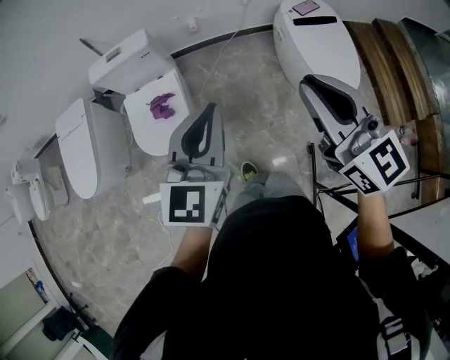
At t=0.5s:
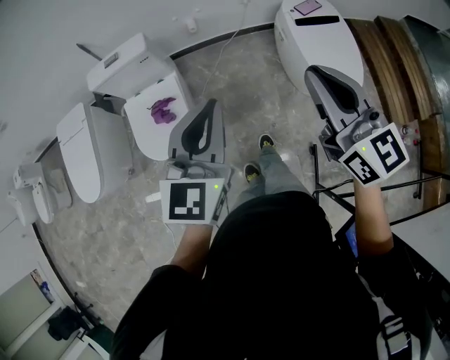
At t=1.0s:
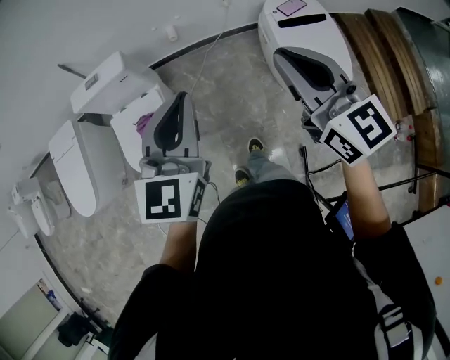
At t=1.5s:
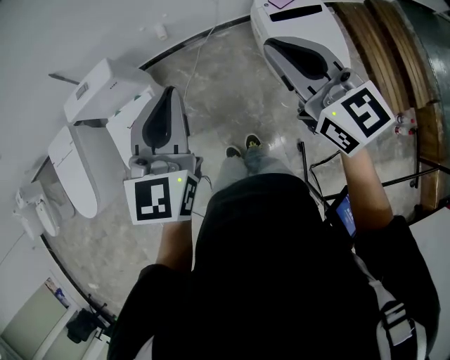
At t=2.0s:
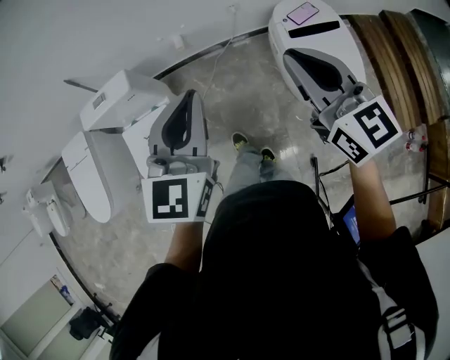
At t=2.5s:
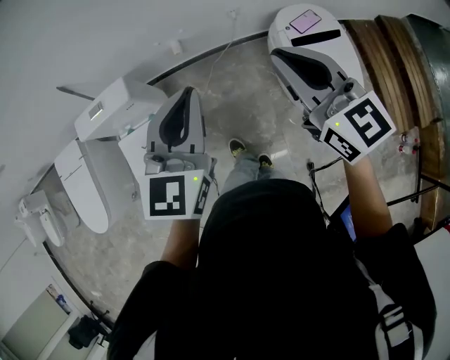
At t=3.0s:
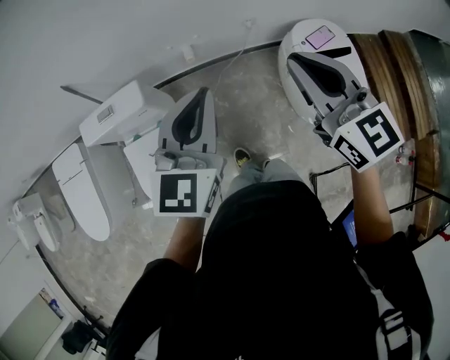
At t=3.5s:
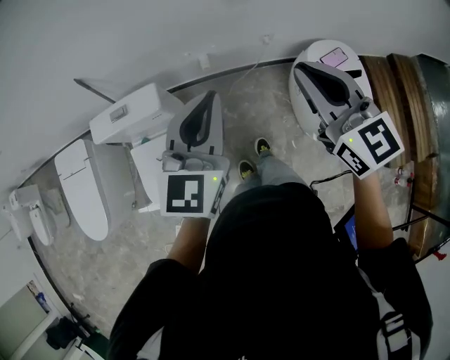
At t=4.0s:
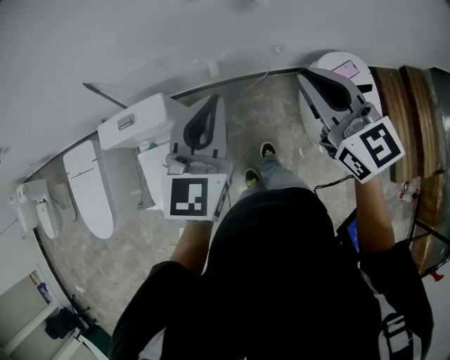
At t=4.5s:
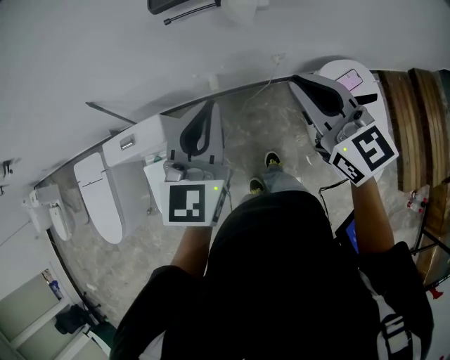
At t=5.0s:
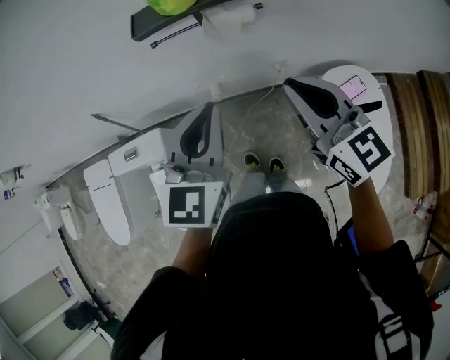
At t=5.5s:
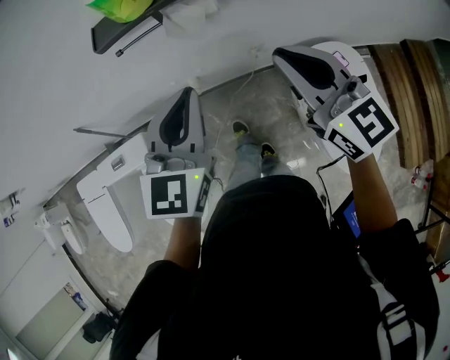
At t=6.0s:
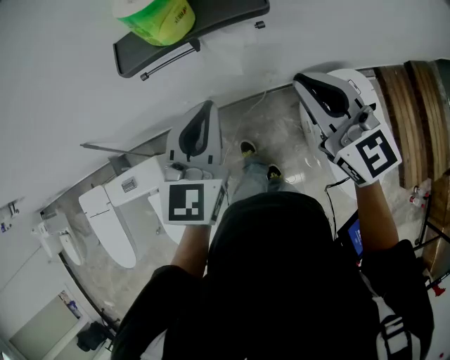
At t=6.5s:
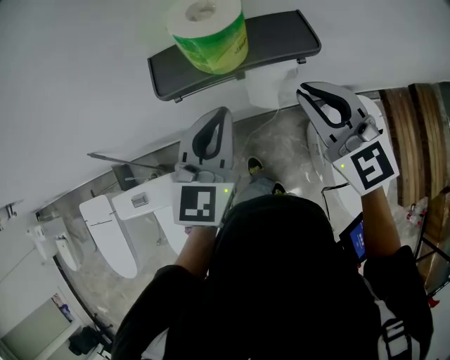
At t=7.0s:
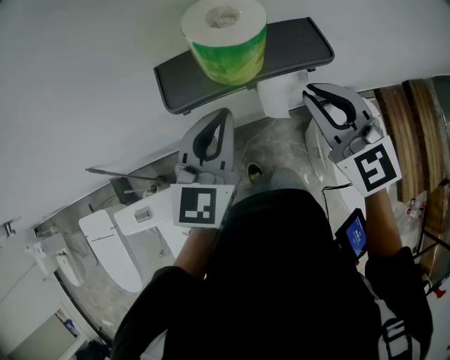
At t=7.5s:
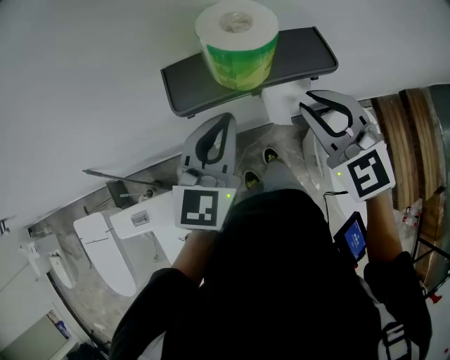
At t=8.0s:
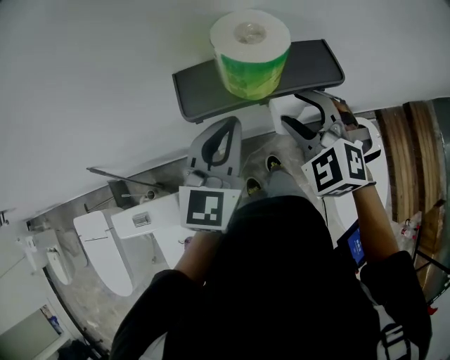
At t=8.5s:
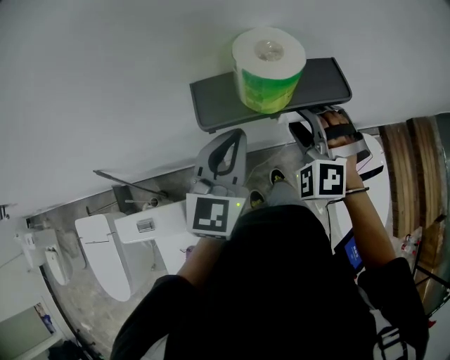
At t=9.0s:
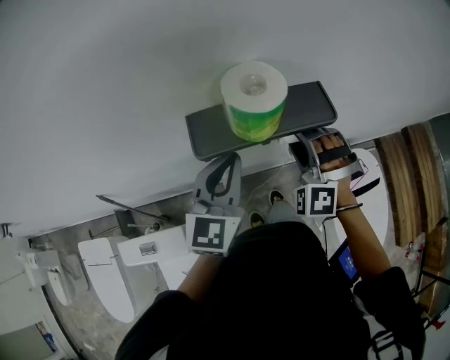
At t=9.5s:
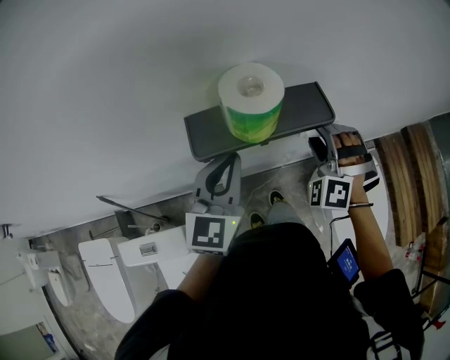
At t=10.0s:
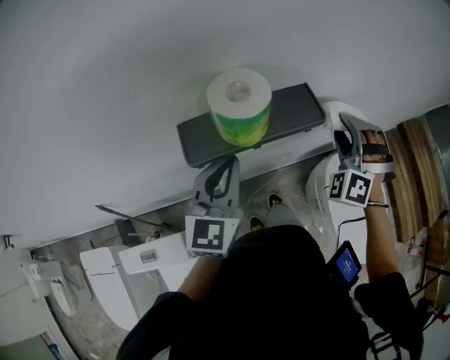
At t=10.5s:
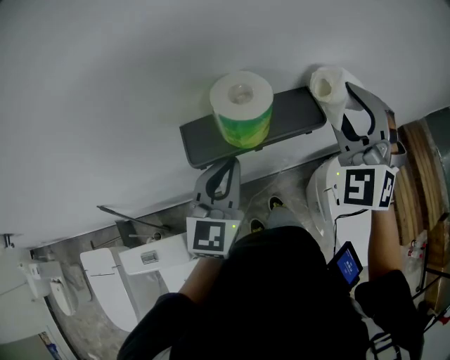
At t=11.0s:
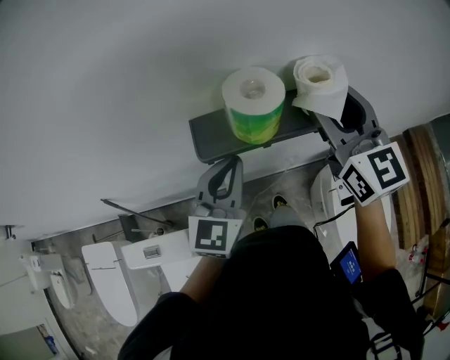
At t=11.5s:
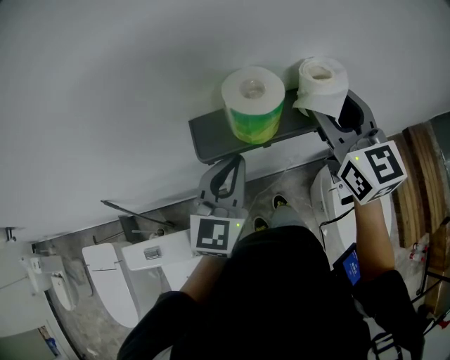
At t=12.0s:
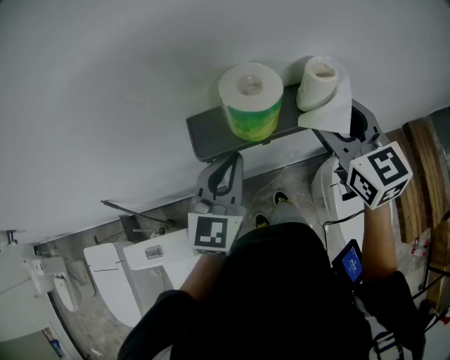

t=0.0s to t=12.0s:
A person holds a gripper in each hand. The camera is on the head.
t=0.0s to t=2.0s: Both grippers move forward and to the right, approximately 30 cm.
t=2.0s to t=4.0s: The grippers both shift forward and to the left by some 25 cm.
t=4.0s to t=6.0s: The grippers both shift forward and to the right by approximately 25 cm.
t=6.0s to t=8.0s: The left gripper heads forward and to the left, covering roughly 10 cm; the right gripper travels forward, to the left and downward by approximately 15 cm, angles its fingers downward, by roughly 30 degrees, and opens its fingers.
t=8.0s to t=10.0s: The right gripper travels to the right and forward by some 15 cm, and rotates roughly 40 degrees.
t=10.0s to t=12.0s: The right gripper moves upward and to the left, roughly 15 cm, and rolls clockwise, seen from behind, by roughly 70 degrees.

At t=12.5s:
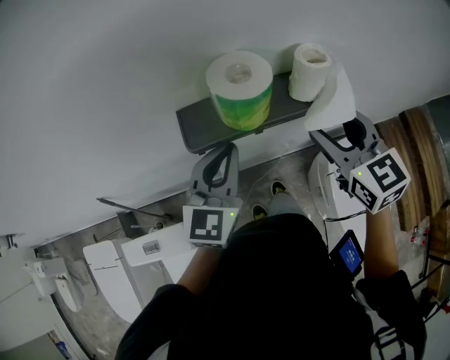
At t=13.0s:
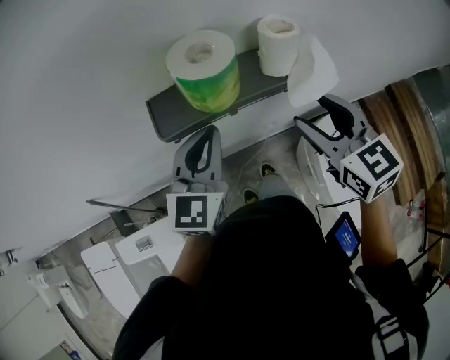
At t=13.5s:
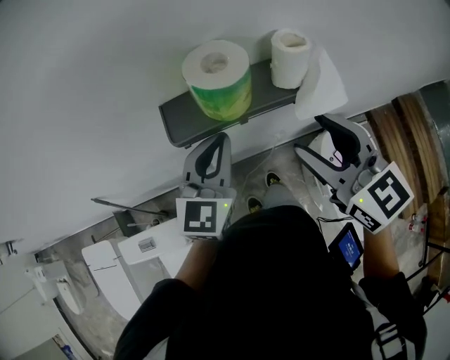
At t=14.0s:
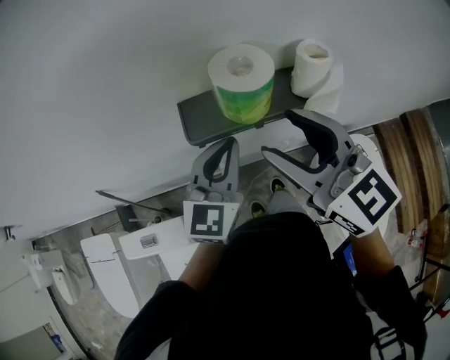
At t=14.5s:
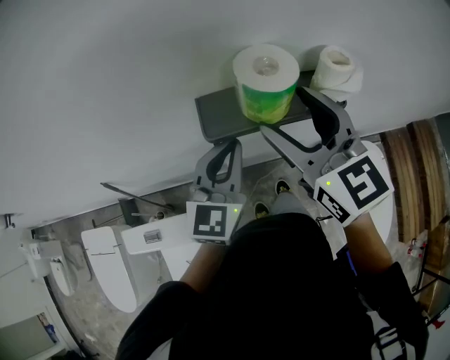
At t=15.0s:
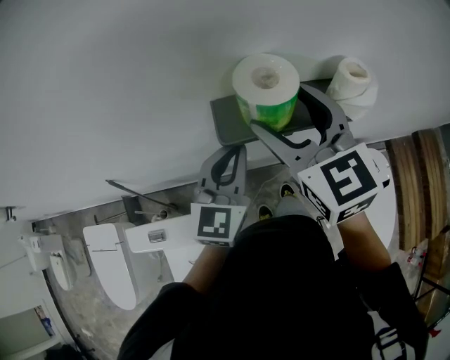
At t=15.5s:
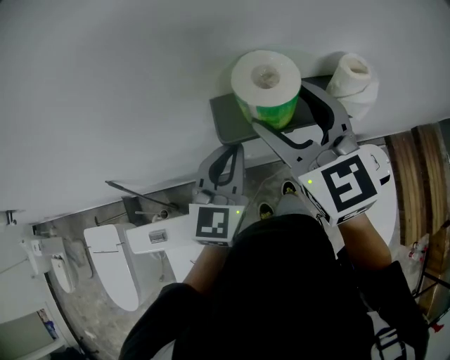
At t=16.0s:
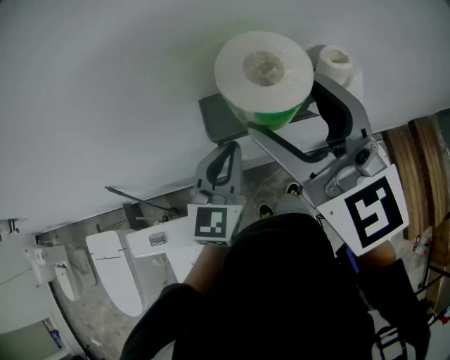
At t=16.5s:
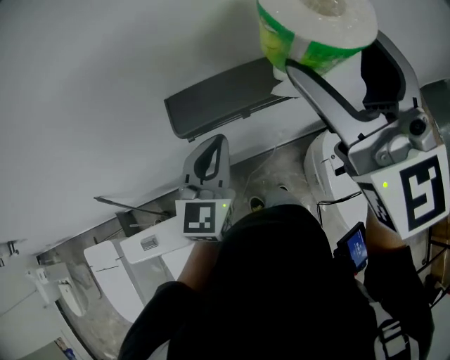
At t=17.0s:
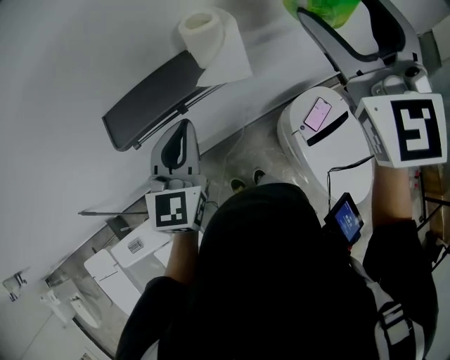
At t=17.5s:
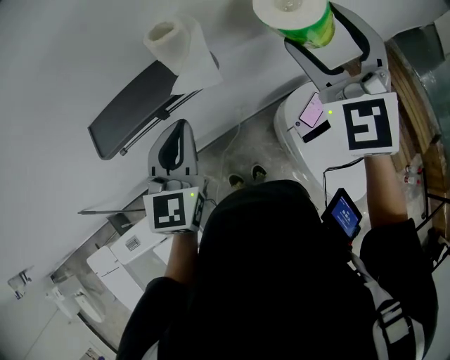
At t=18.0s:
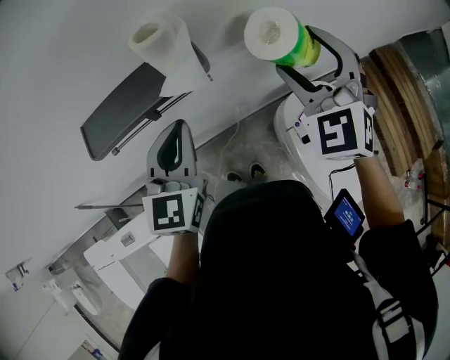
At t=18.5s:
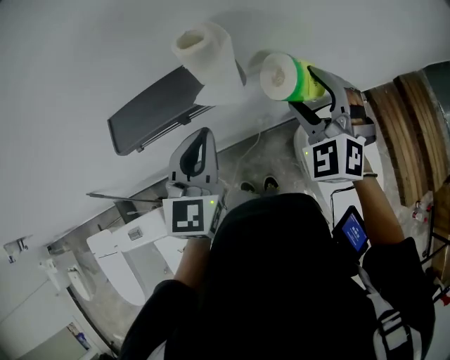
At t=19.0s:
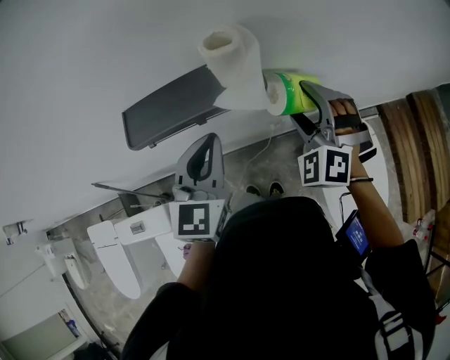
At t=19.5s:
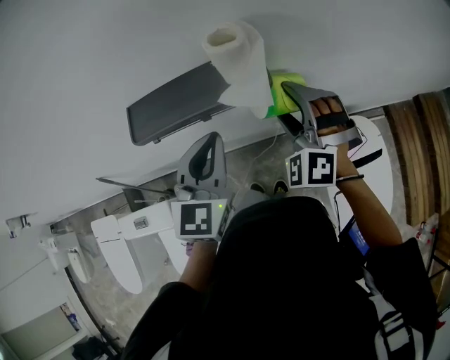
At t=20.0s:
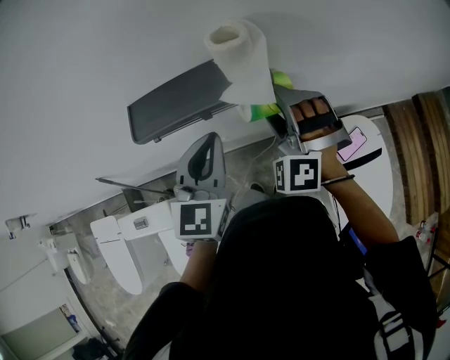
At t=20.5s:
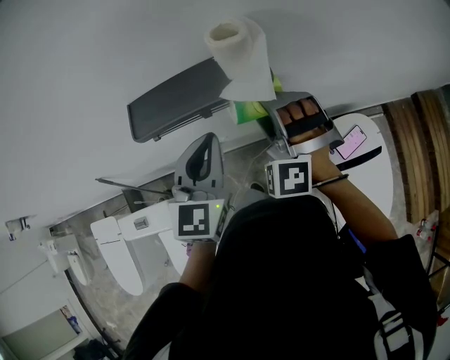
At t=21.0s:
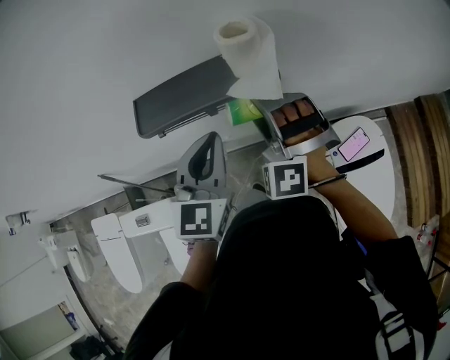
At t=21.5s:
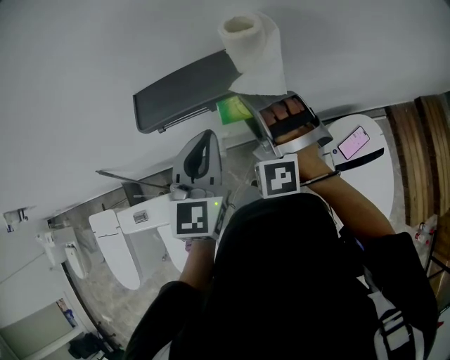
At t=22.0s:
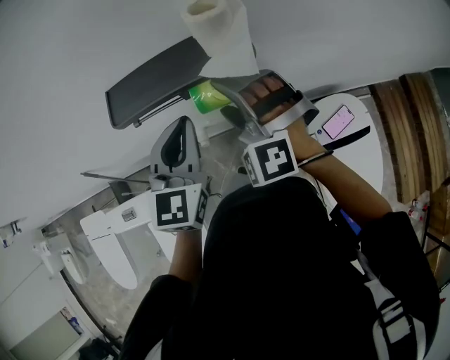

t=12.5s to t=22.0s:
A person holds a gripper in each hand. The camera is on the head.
t=12.5s to t=14.5s: The right gripper shifts some 15 cm to the left and upward.
t=14.5s to t=16.5s: The right gripper travels upward and to the right by approximately 15 cm, and changes its angle by roughly 30 degrees.
t=16.5s to t=18.0s: The right gripper travels downward and to the right by about 25 cm, and turns by about 40 degrees, while the left gripper heads to the right, covering roughly 10 cm.
t=18.0s to t=20.0s: The right gripper is displaced to the left and downward by roughly 20 cm, and swivels about 30 degrees.
t=20.0s to t=22.0s: The right gripper heads to the left, covering some 5 cm.

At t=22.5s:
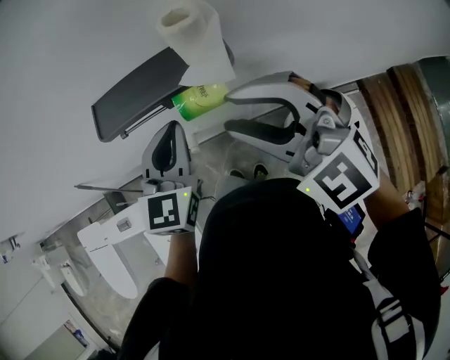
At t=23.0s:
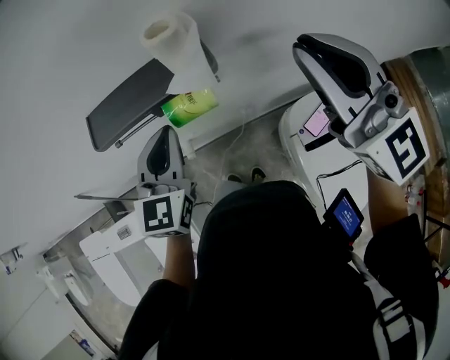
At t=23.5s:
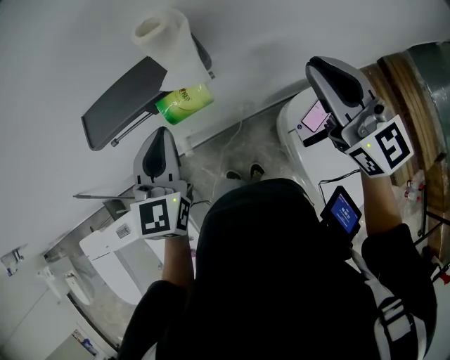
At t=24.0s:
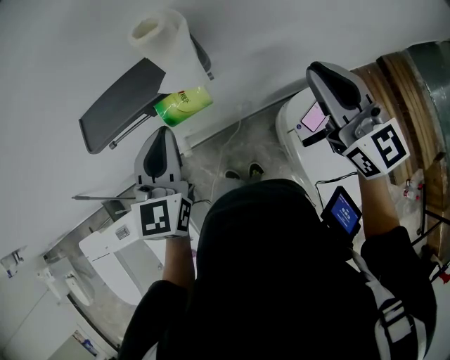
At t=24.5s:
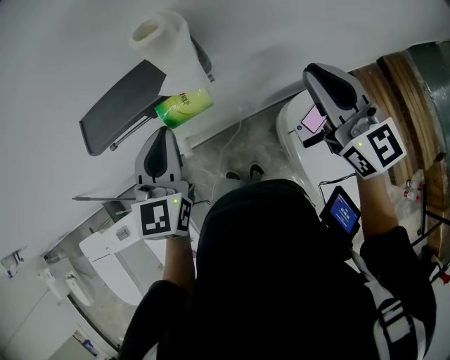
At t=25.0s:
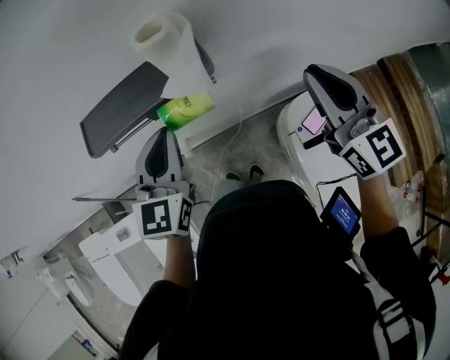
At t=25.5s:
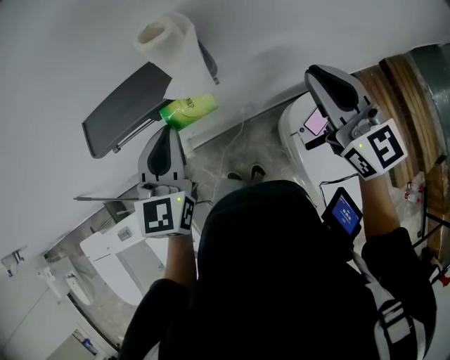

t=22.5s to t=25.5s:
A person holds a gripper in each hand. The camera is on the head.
t=22.5s to t=24.0s: The right gripper goes about 20 cm to the right, changes its angle by some 50 degrees, and closes.
t=24.0s to t=25.5s: The grippers make only small movements.

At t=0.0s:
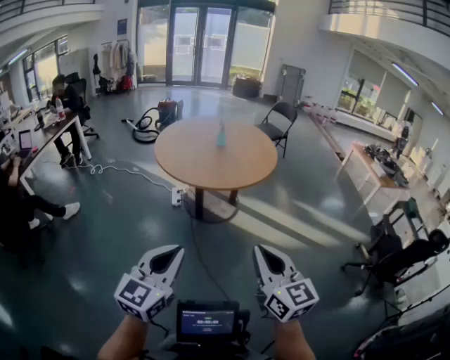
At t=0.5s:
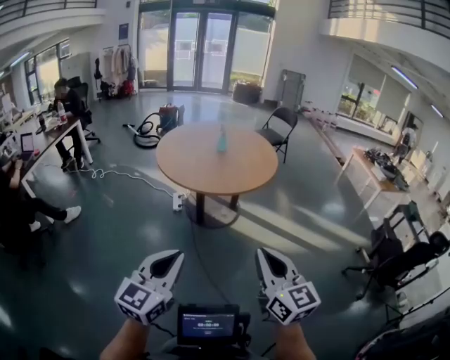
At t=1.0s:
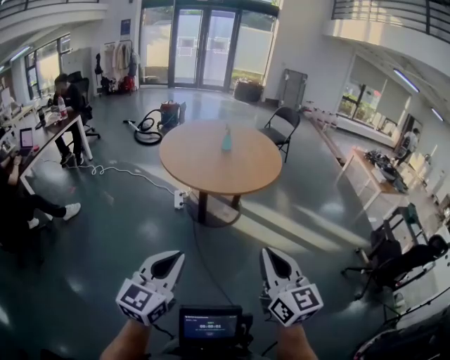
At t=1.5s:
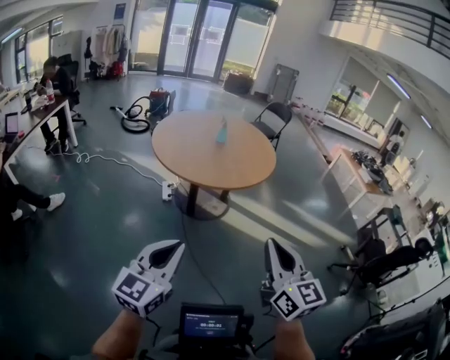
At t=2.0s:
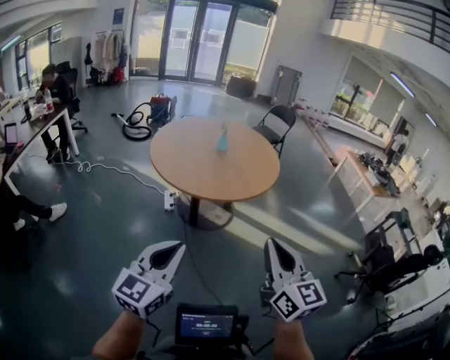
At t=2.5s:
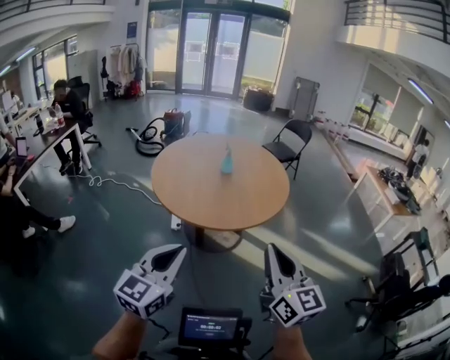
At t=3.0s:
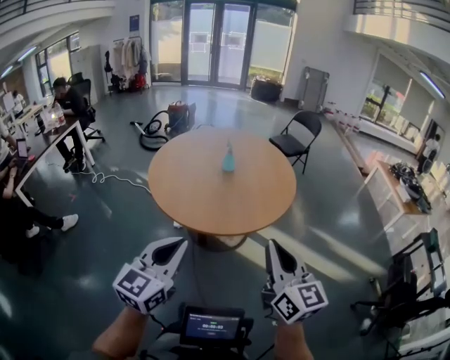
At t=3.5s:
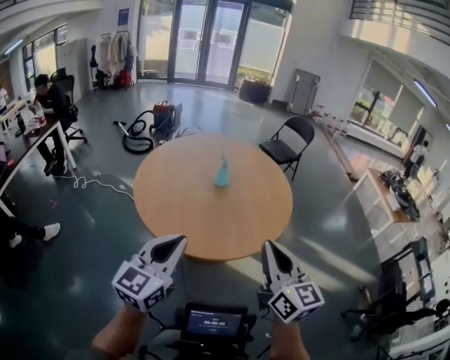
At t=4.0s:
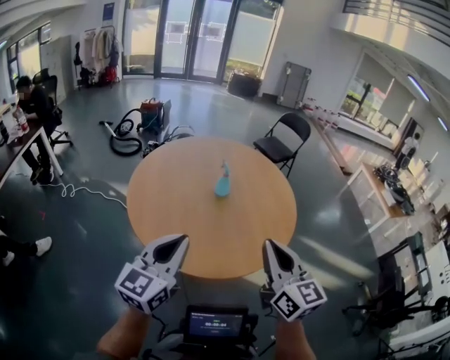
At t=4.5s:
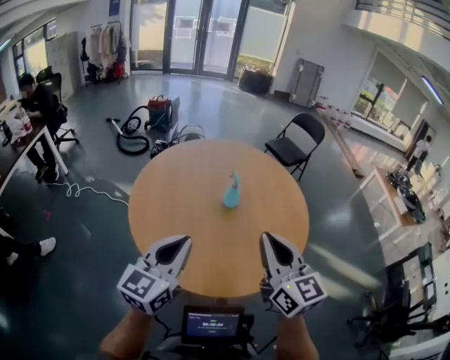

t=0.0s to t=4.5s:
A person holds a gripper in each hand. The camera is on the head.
t=0.0s to t=2.0s: The two grippers go some 10 cm forward and to the left.
t=2.0s to t=4.5s: Both grippers are carried forward, approximately 50 cm.
